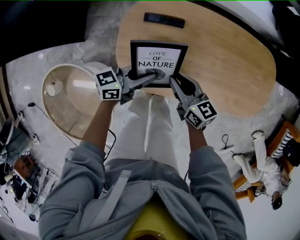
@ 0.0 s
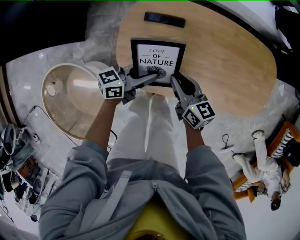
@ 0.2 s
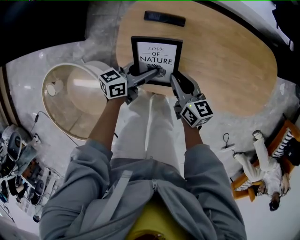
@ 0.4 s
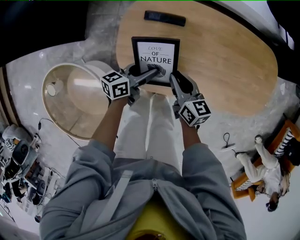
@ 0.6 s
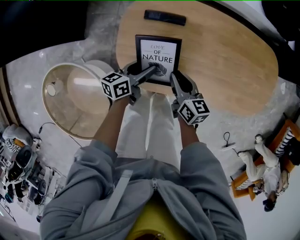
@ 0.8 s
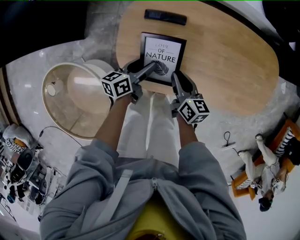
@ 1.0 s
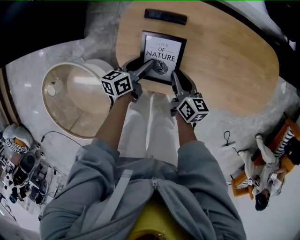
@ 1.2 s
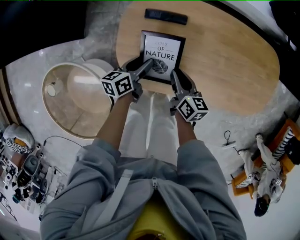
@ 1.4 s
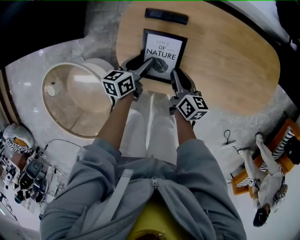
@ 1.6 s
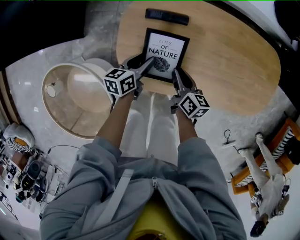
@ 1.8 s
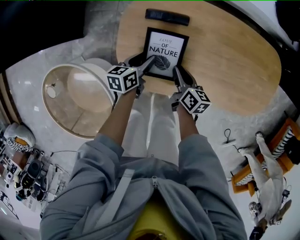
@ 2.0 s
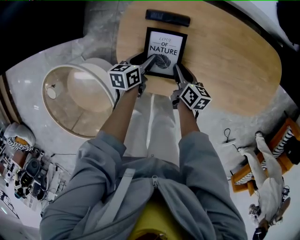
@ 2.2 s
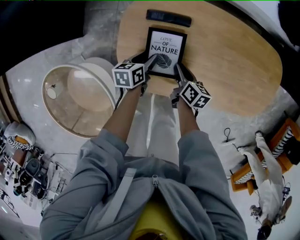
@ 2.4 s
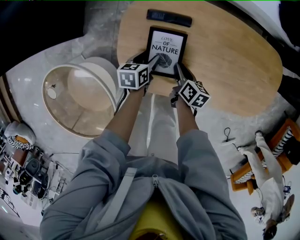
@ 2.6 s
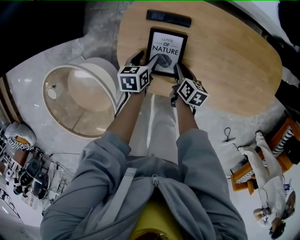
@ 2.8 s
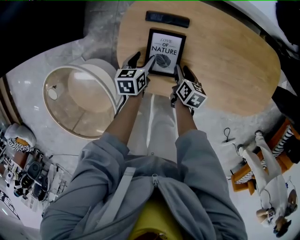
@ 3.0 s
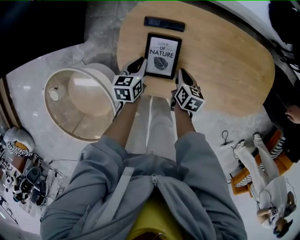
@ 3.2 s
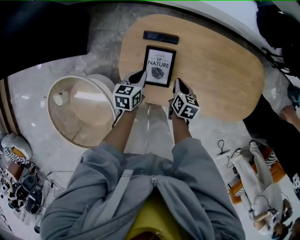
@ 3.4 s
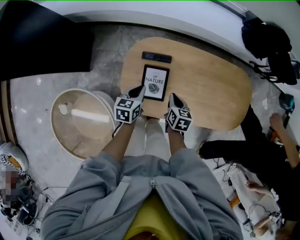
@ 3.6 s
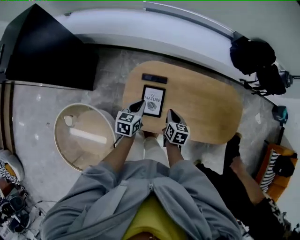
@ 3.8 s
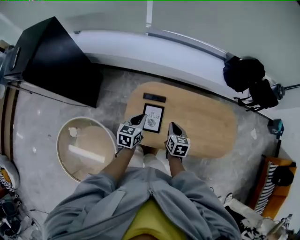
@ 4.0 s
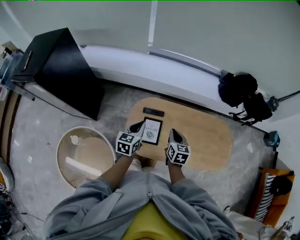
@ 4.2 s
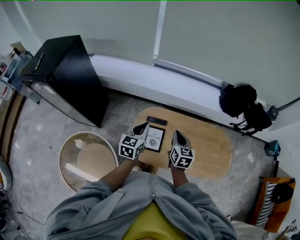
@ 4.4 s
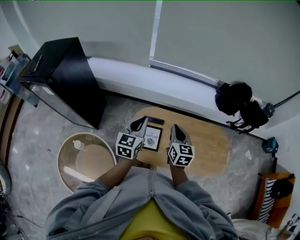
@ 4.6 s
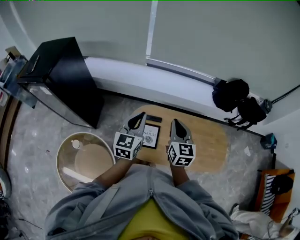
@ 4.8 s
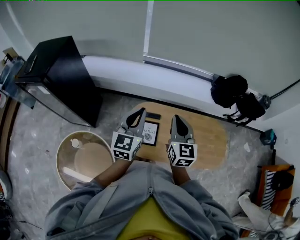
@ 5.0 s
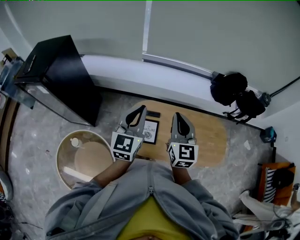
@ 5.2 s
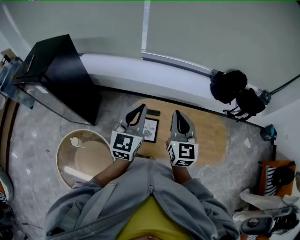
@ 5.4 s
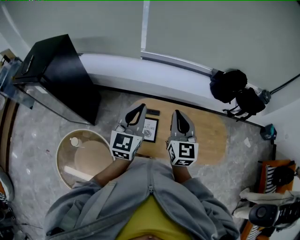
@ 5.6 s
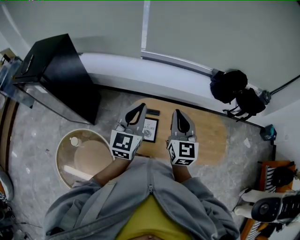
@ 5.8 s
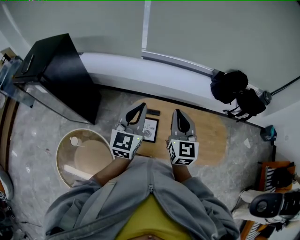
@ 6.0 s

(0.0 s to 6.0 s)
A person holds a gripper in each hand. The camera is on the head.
0.0 s - 1.6 s: The right gripper travels downward by some 5 cm, and swivels some 30 degrees, while the left gripper moves downward and to the left, approximately 10 cm, rotates approximately 40 degrees, and opens up.
1.6 s - 3.0 s: The right gripper travels downward by some 5 cm, changes its angle by approximately 20 degrees, and opens. Meanwhile the left gripper turns by some 20 degrees.
3.0 s - 4.4 s: Both grippers move upward, some 50 cm. The right gripper rotates some 40 degrees, and closes; the left gripper rotates approximately 40 degrees, and closes up.
4.4 s - 6.0 s: The two grippers go some 15 cm upward. The left gripper changes its angle by approximately 20 degrees. The right gripper rotates approximately 30 degrees.

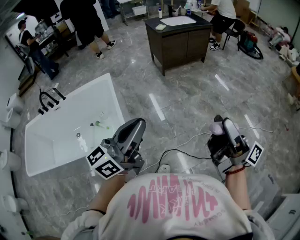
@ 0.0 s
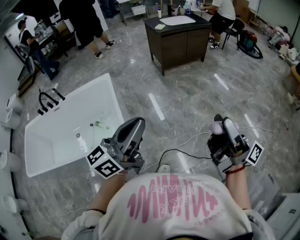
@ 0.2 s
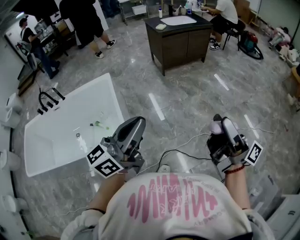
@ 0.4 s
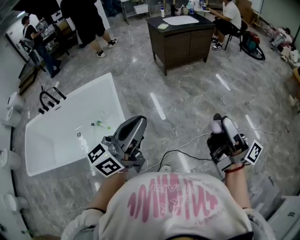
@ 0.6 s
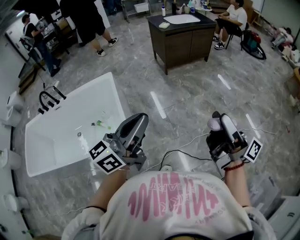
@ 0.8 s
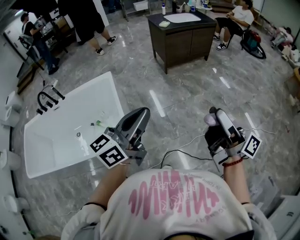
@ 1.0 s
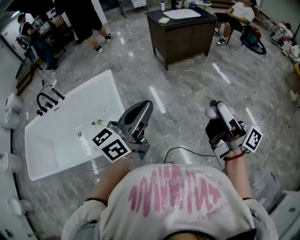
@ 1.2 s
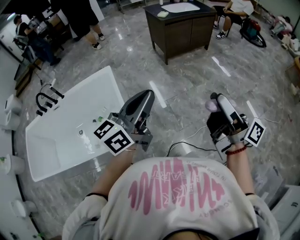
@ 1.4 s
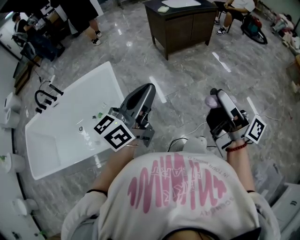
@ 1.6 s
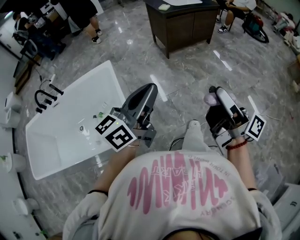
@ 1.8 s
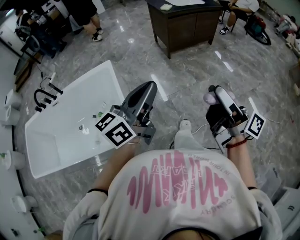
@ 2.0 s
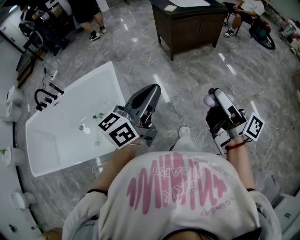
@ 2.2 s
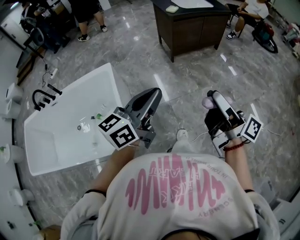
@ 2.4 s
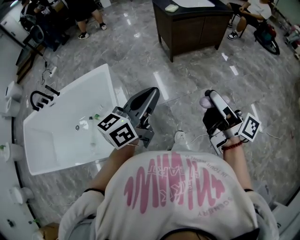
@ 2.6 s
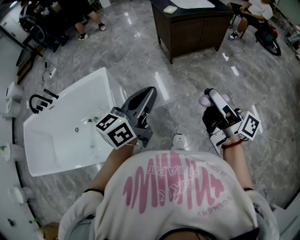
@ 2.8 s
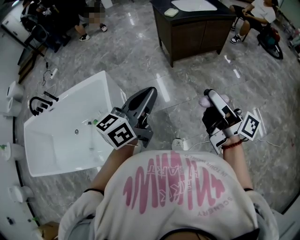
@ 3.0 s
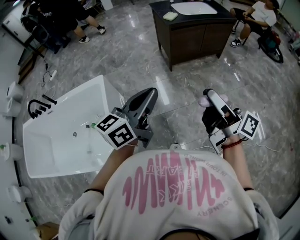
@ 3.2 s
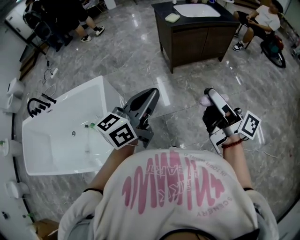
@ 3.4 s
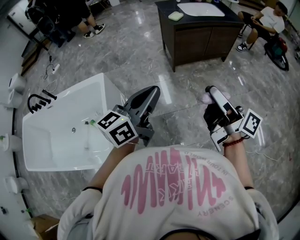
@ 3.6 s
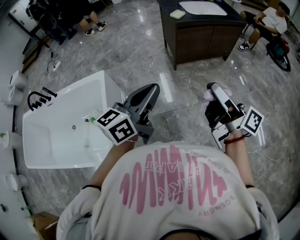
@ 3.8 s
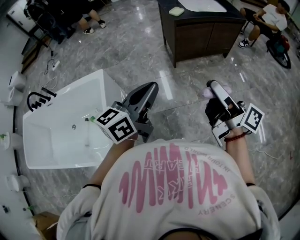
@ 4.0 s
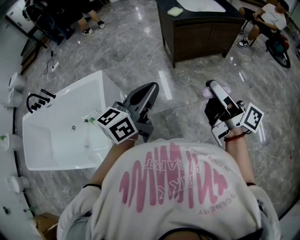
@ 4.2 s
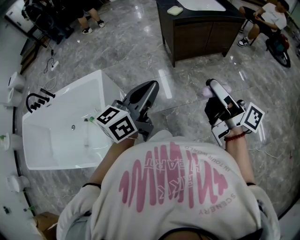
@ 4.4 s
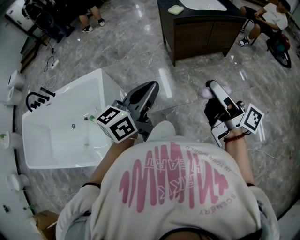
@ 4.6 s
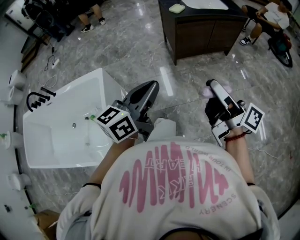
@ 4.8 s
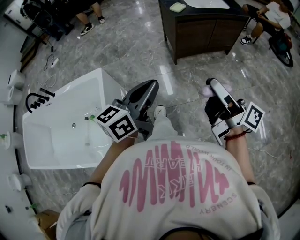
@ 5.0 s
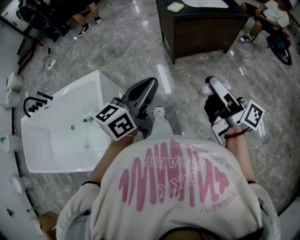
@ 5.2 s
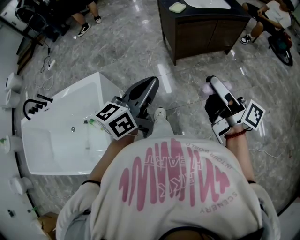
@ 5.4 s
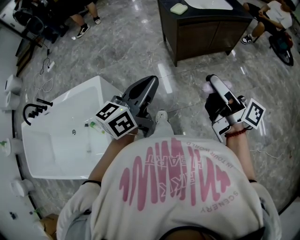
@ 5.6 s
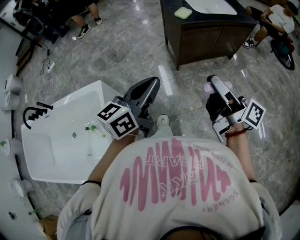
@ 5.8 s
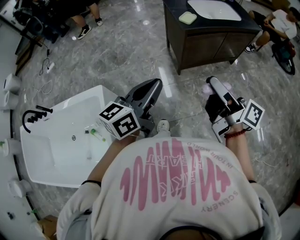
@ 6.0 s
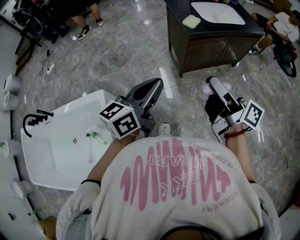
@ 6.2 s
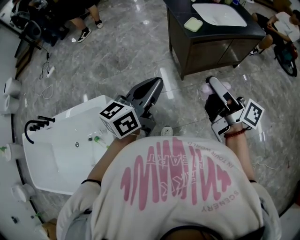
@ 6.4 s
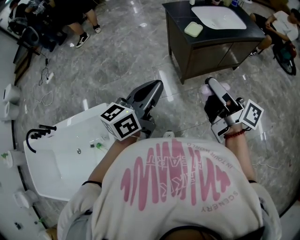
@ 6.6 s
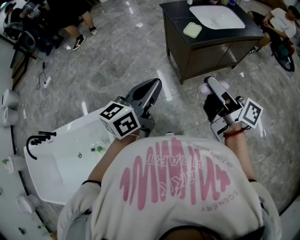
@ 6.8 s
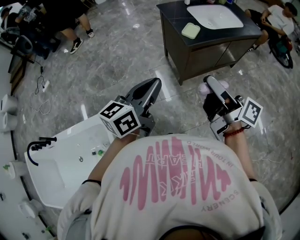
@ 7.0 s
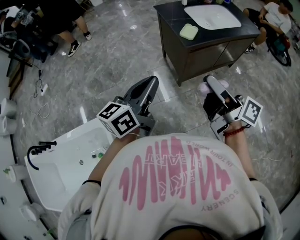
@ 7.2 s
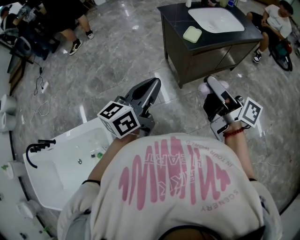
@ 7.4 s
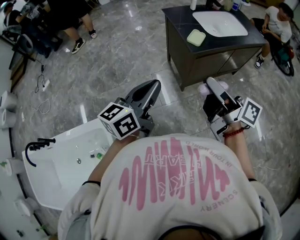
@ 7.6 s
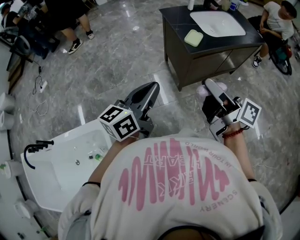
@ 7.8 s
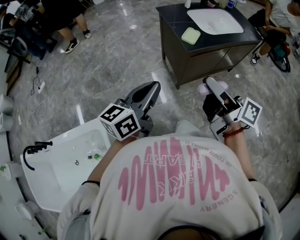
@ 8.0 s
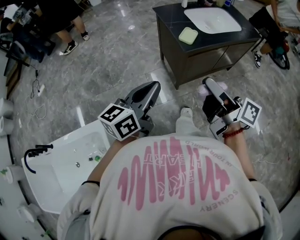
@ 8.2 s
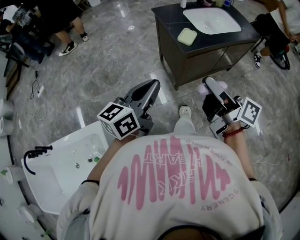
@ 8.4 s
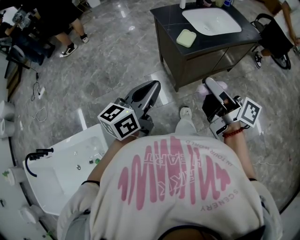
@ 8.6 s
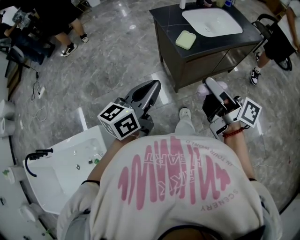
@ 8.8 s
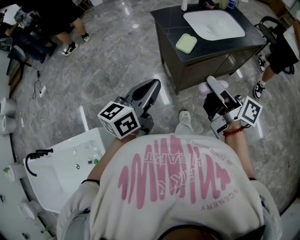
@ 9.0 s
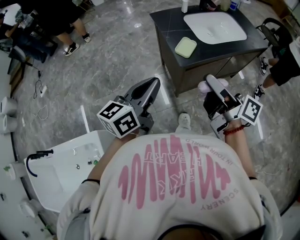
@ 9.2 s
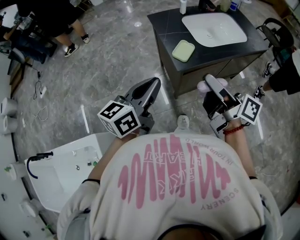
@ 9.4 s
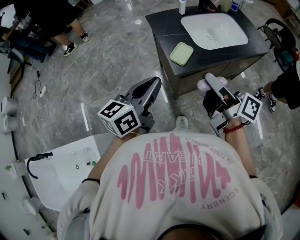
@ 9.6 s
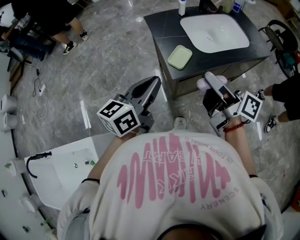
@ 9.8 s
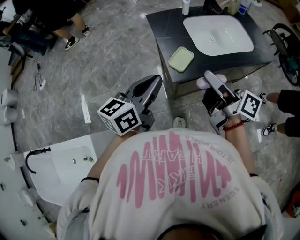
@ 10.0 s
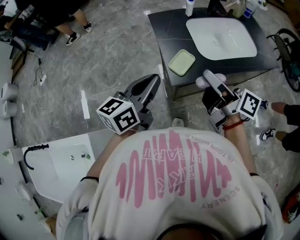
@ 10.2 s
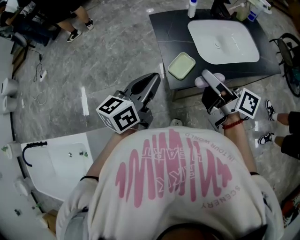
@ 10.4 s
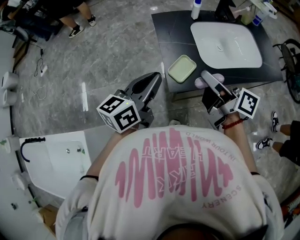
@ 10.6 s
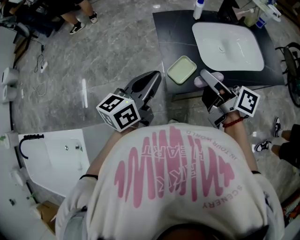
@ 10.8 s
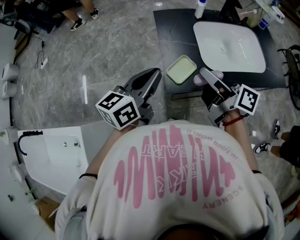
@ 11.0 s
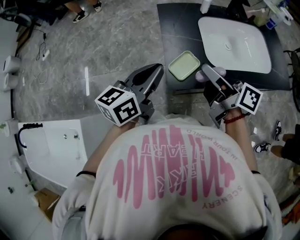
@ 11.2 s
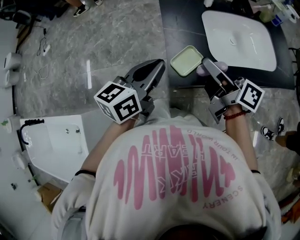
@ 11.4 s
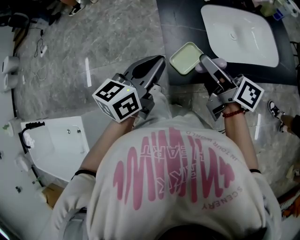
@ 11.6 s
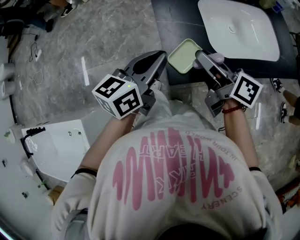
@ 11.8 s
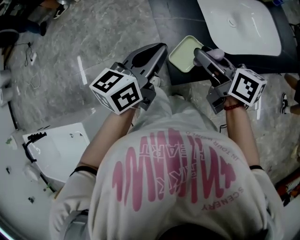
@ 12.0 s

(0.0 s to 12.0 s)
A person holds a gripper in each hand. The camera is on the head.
0.0 s - 1.6 s: The right gripper heads forward and to the left, covering roughly 15 cm. The left gripper travels forward by approximately 15 cm.
1.6 s - 3.0 s: The grippers both shift forward by about 25 cm.
3.0 s - 4.4 s: The grippers both shift forward by some 10 cm.
4.4 s - 6.0 s: Both grippers travel together forward, approximately 20 cm.
6.0 s - 7.6 s: The left gripper goes about 15 cm forward, while the right gripper shifts roughly 20 cm forward and to the left.
7.6 s - 9.0 s: Both grippers move forward and to the right, some 10 cm.
9.0 s - 10.4 s: The grippers both shift forward by some 20 cm.
10.4 s - 12.0 s: The left gripper goes about 15 cm forward and downward. The right gripper goes about 15 cm downward and forward, and turns by approximately 30 degrees.

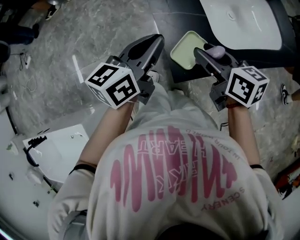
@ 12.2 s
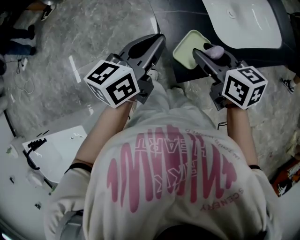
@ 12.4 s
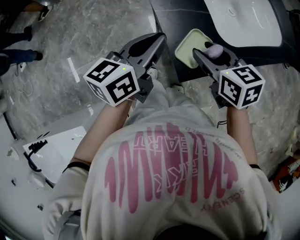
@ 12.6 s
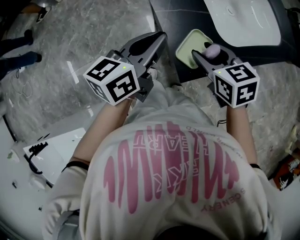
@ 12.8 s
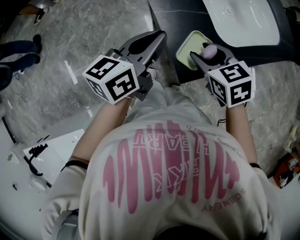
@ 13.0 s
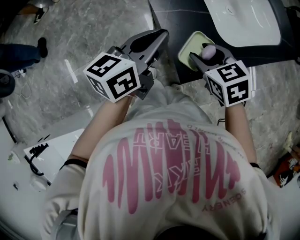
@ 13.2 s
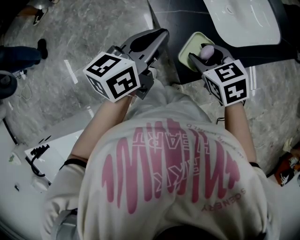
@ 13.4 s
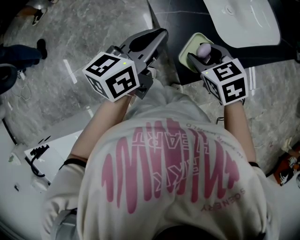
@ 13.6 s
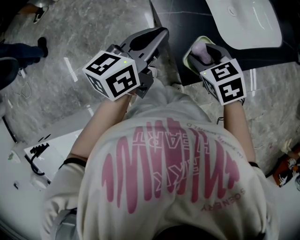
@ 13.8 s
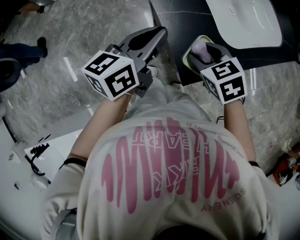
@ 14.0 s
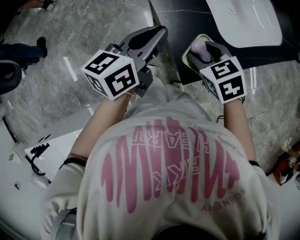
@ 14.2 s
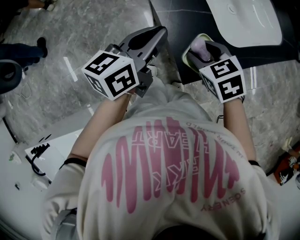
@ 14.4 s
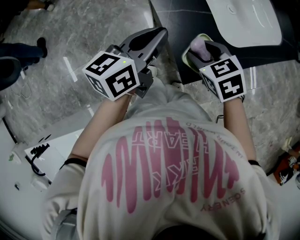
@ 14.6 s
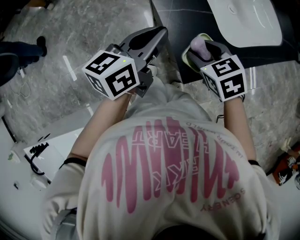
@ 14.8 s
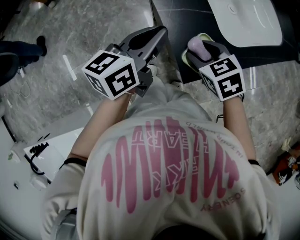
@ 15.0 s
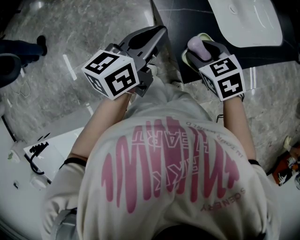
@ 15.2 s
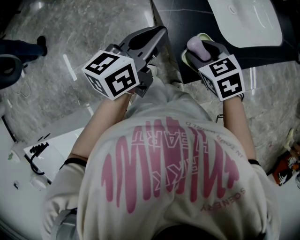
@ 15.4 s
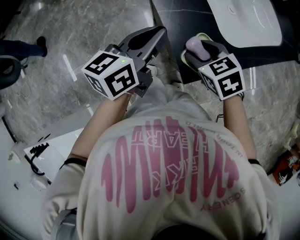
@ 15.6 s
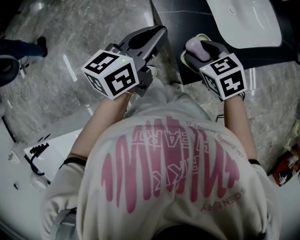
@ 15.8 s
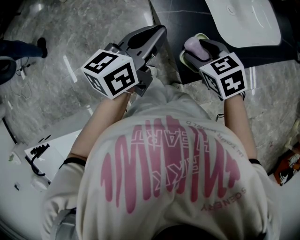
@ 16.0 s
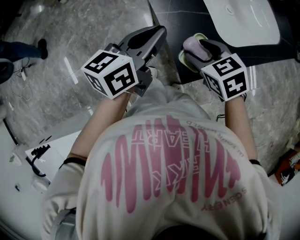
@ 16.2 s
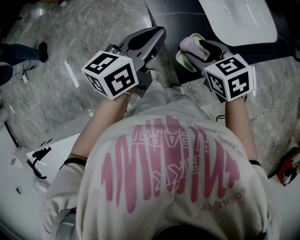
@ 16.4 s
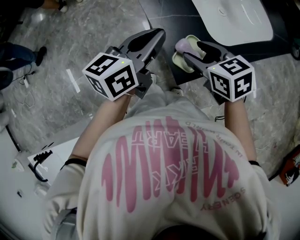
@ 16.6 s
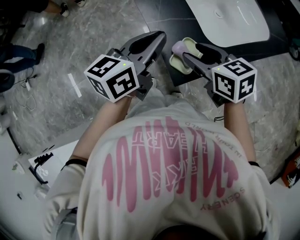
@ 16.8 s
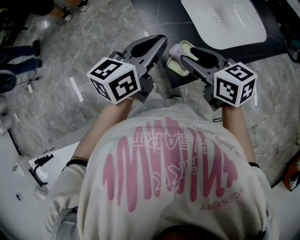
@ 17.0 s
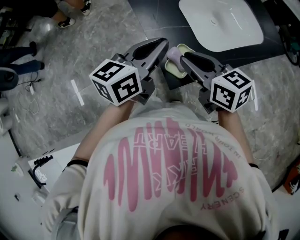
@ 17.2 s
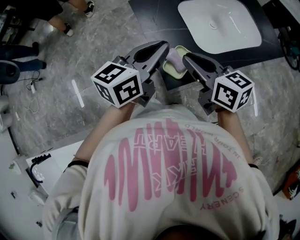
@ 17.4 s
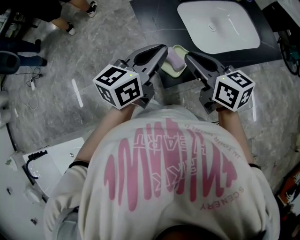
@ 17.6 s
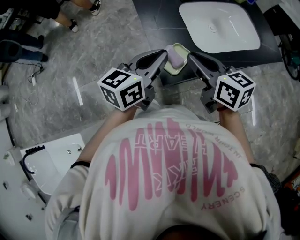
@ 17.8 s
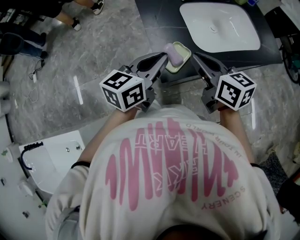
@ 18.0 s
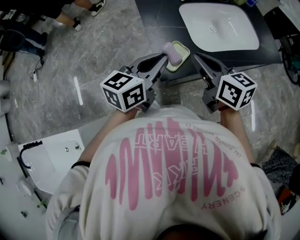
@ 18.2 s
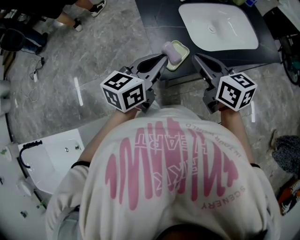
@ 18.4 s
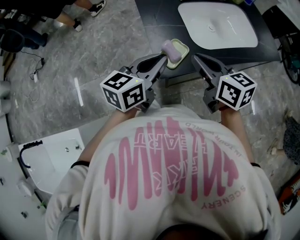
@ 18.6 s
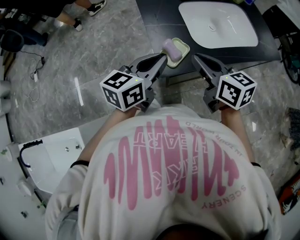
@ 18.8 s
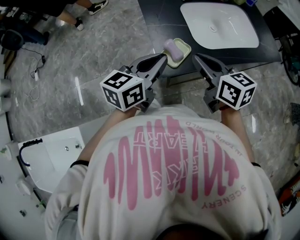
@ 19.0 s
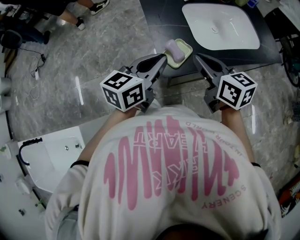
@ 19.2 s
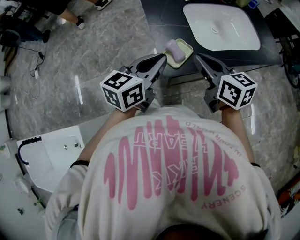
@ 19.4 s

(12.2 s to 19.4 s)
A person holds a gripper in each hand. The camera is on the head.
12.2 s - 13.6 s: The right gripper is displaced downward by some 5 cm, and swivels approximately 40 degrees.
13.6 s - 15.0 s: The grippers stay close to where they were, moving slightly.
15.0 s - 16.6 s: The right gripper travels upward by roughly 5 cm.
16.6 s - 18.0 s: The right gripper is displaced upward and to the right by about 10 cm, swivels approximately 30 degrees, and closes up. Meanwhile the left gripper shifts approximately 10 cm backward and to the right.
18.0 s - 19.4 s: The grippers stay close to where they were, moving slightly.
